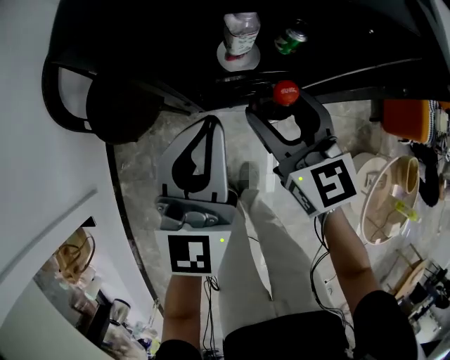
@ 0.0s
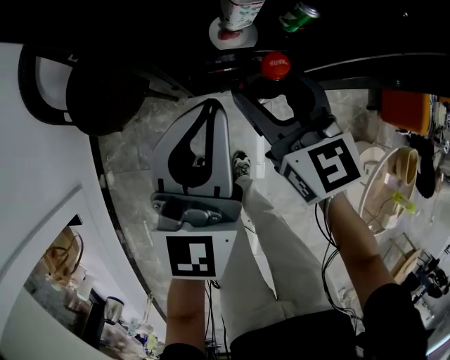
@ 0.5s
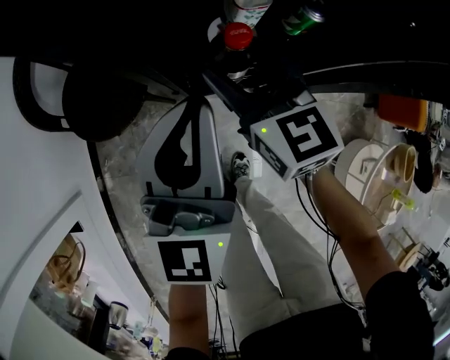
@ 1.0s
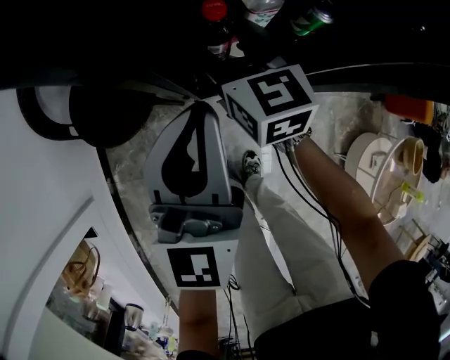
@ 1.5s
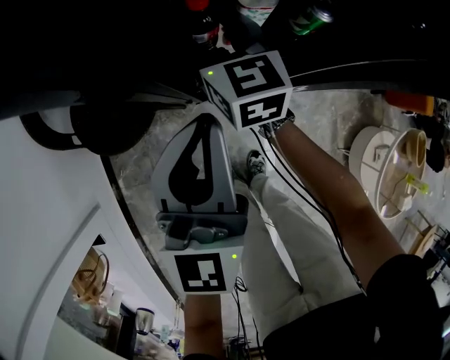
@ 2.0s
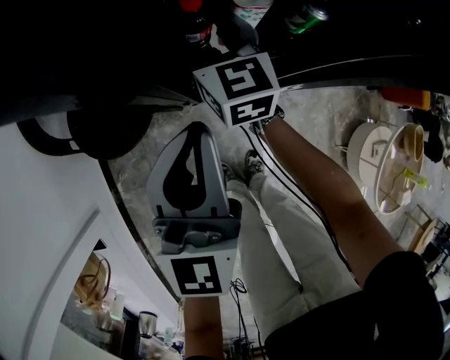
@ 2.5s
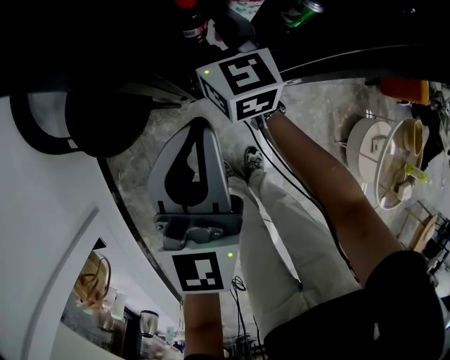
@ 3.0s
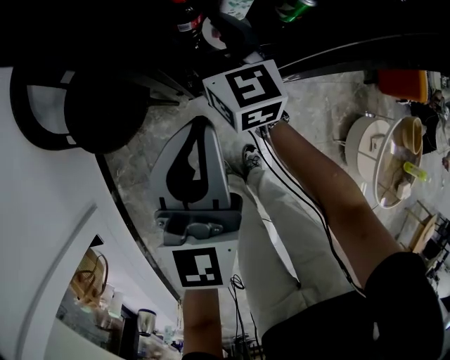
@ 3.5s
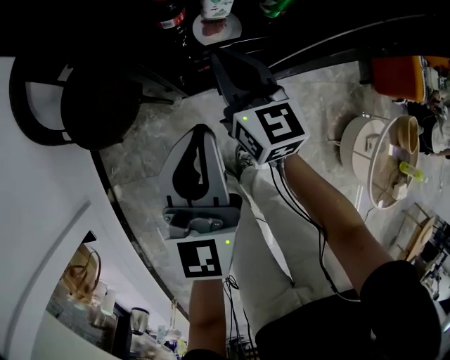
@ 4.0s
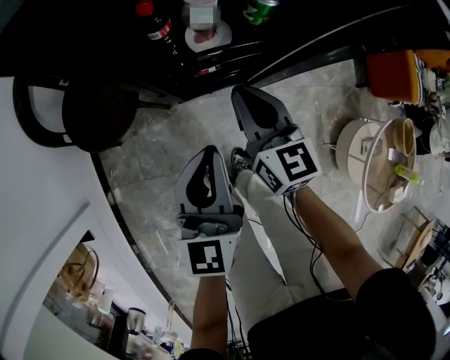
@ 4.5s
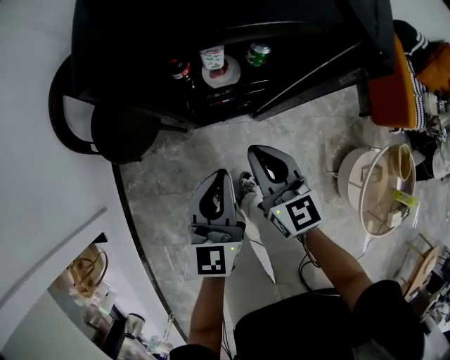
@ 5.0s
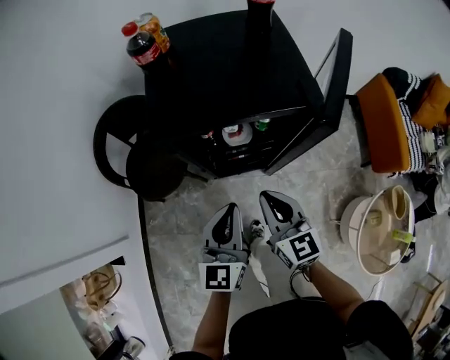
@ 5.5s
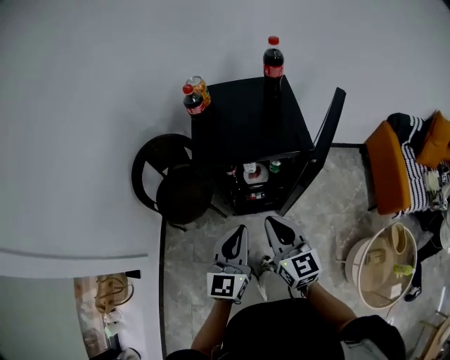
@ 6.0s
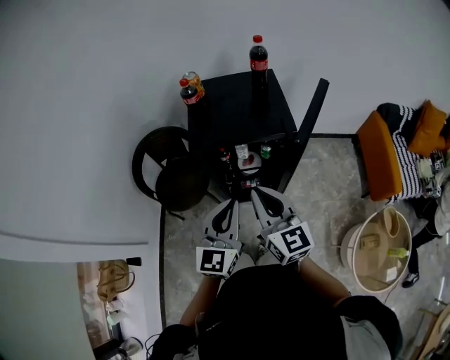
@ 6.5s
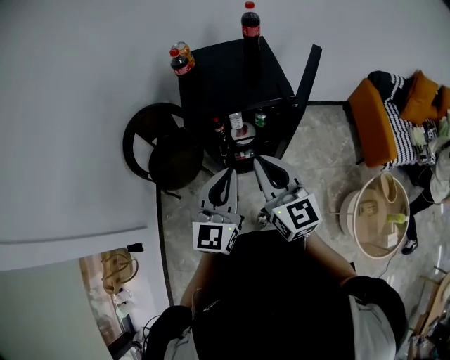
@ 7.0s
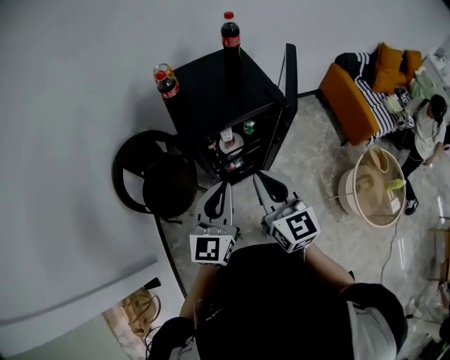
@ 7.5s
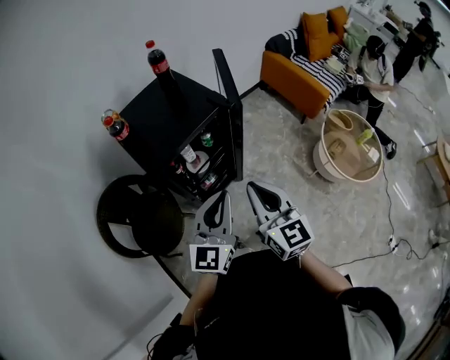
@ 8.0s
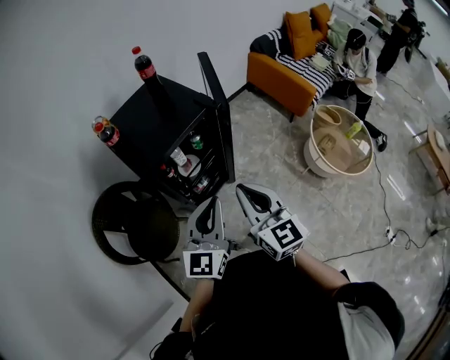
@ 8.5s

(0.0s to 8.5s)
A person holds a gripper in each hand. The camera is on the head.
0.0s - 2.0s: The right gripper shifts some 20 cm forward, to the left and downward; the left gripper shifts by roughly 5 cm.
2.0s - 4.0s: The left gripper is displaced backward by about 5 cm. Meanwhile the right gripper moves backward and to the right, some 15 cm, and closes up.
4.0s - 6.5s: The left gripper heads upward, covering approximately 30 cm, while the right gripper shifts approximately 40 cm upward and backward.
6.5s - 8.5s: The right gripper changes place by roughly 10 cm, and turns by about 40 degrees, while the left gripper moves roughly 5 cm, and swivels about 40 degrees.

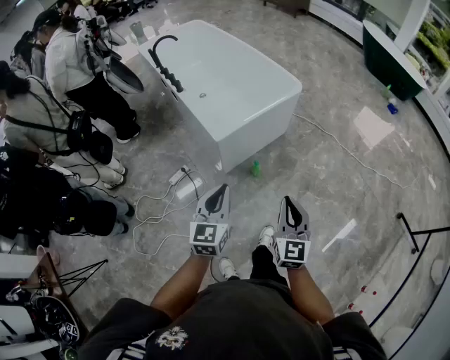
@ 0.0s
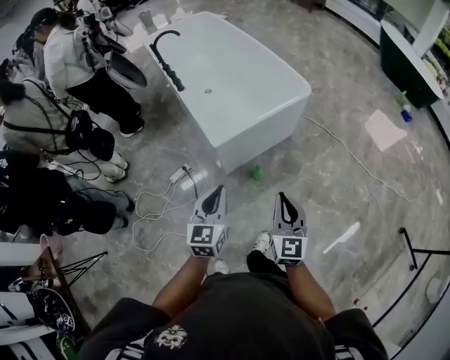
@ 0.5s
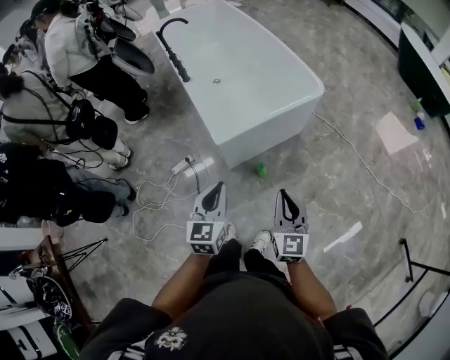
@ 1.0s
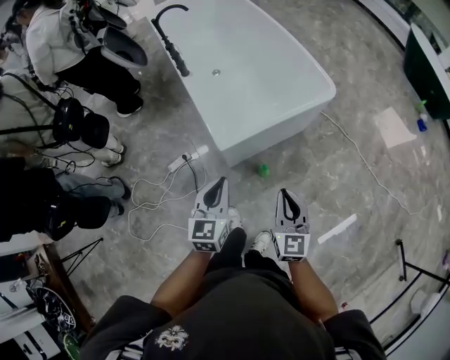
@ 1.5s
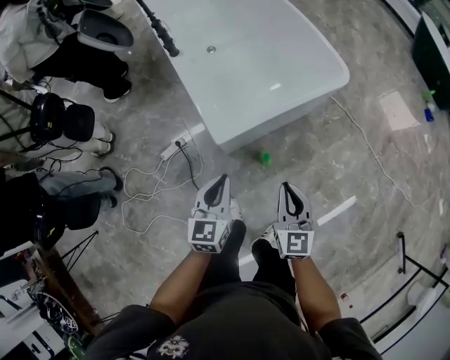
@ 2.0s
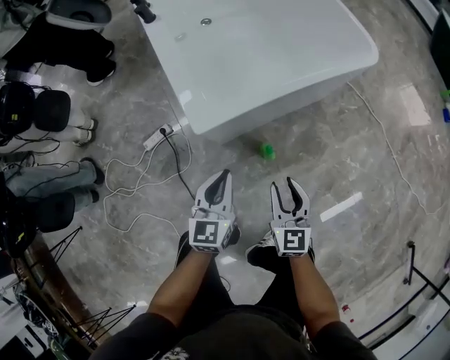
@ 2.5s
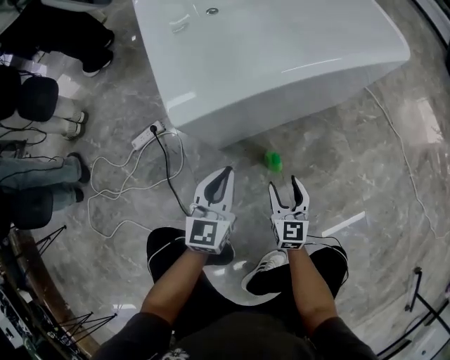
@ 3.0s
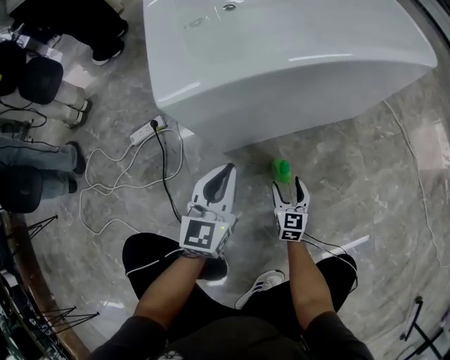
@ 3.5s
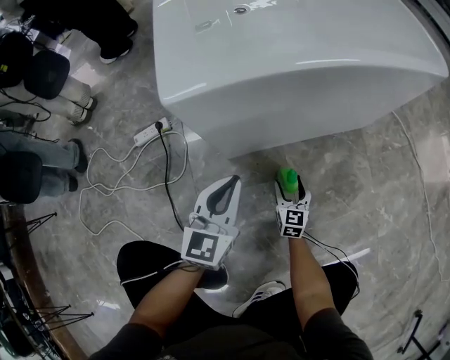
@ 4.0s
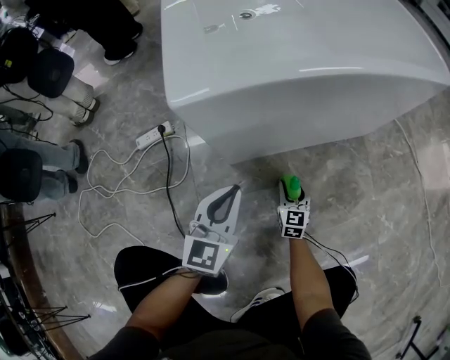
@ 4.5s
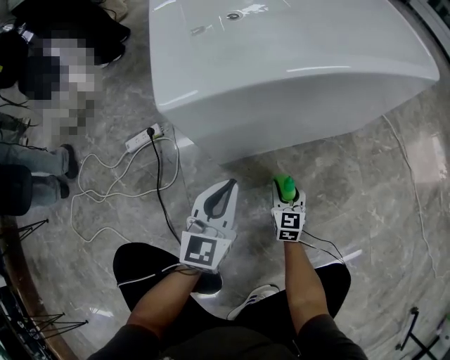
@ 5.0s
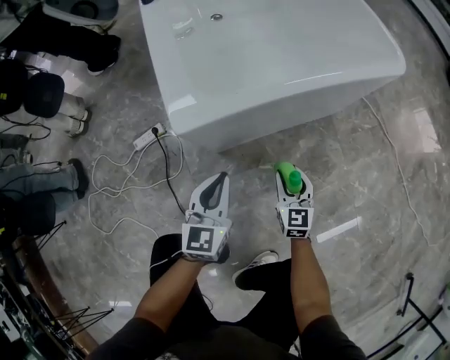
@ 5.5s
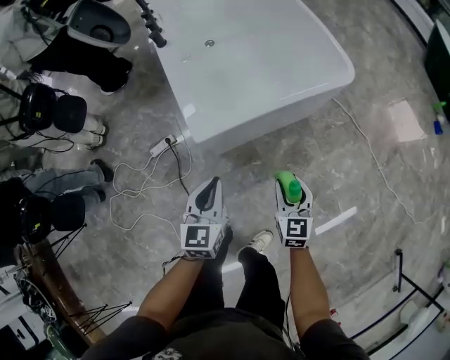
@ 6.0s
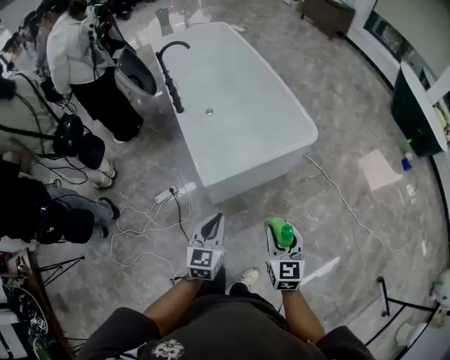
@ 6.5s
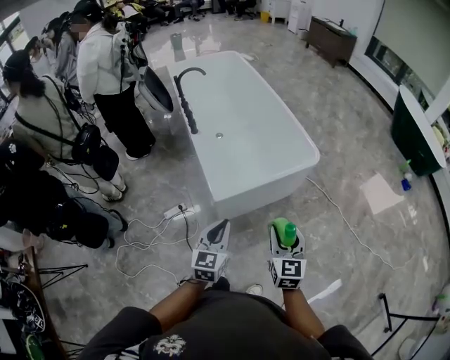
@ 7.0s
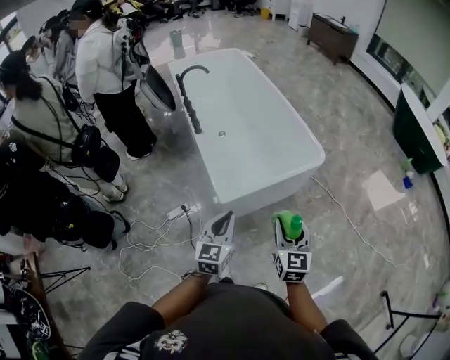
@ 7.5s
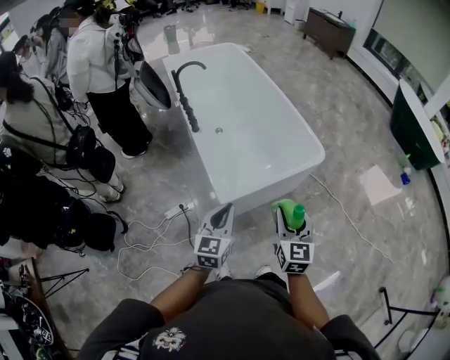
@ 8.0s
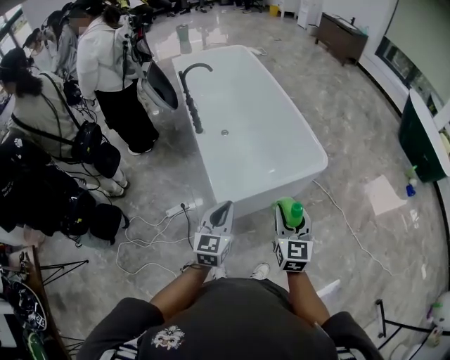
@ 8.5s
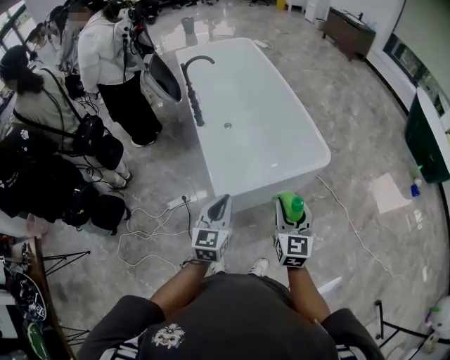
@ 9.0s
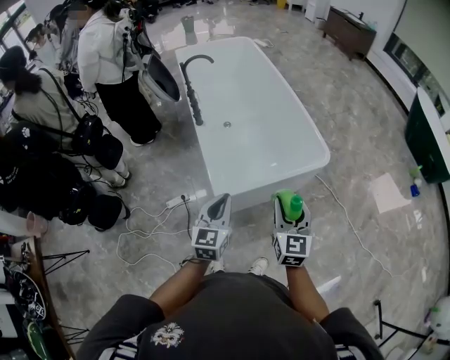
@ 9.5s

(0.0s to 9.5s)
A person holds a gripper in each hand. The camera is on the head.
0.0s - 2.0s: Both grippers travel together forward and downward, roughly 35 cm.
2.0s - 4.0s: The right gripper goes roughly 70 cm downward, and opens. Meanwhile the left gripper is displaced downward by approximately 50 cm.
4.0s - 5.5s: The right gripper heads upward, covering some 25 cm, and closes its fingers. Meanwhile the left gripper shifts roughly 15 cm upward.
5.5s - 7.5s: The two grippers go about 60 cm upward.
7.5s - 9.5s: Both grippers travel together forward, approximately 10 cm.

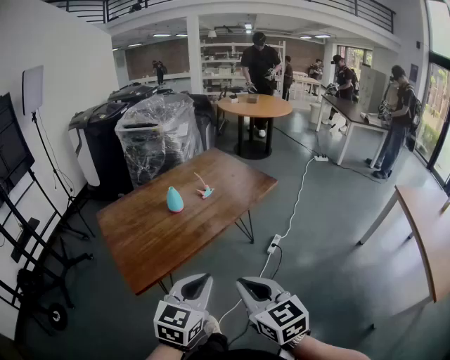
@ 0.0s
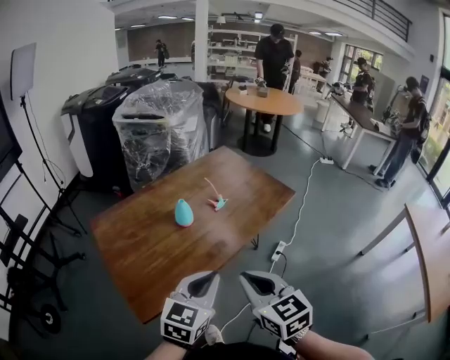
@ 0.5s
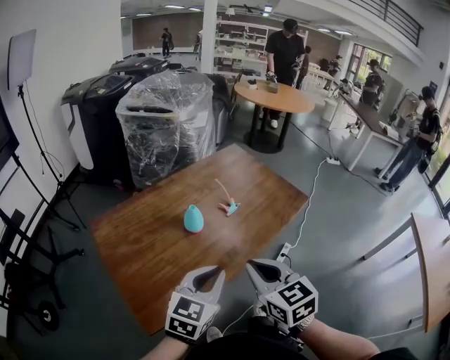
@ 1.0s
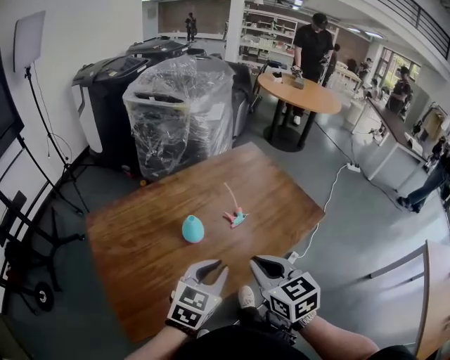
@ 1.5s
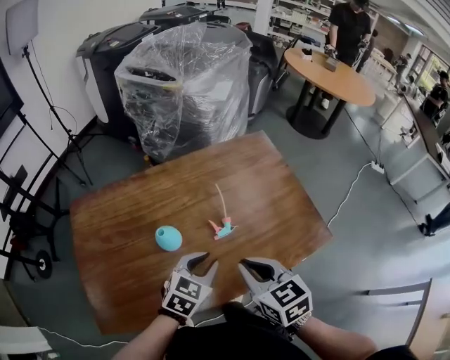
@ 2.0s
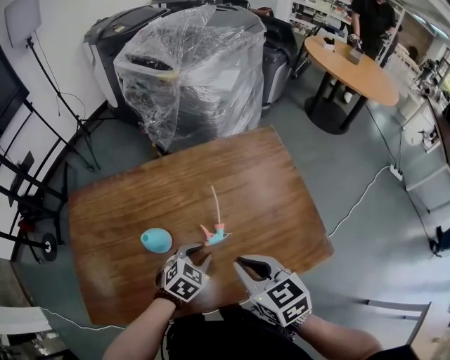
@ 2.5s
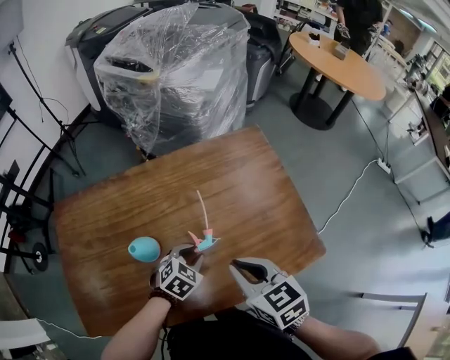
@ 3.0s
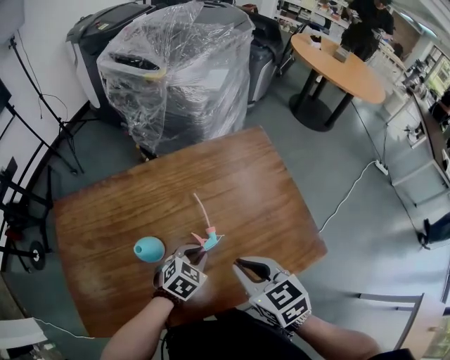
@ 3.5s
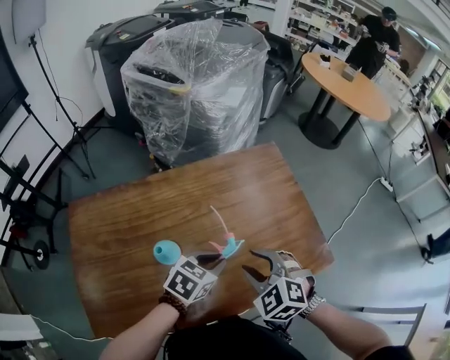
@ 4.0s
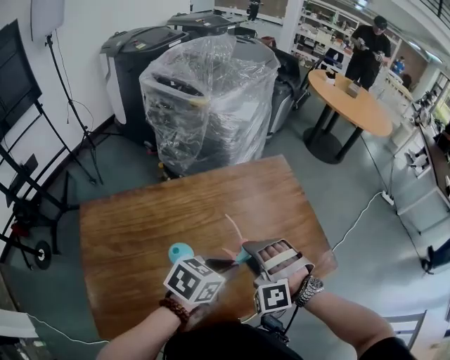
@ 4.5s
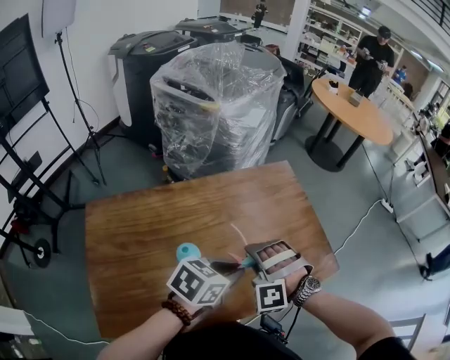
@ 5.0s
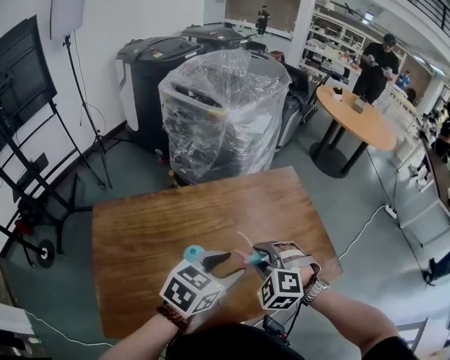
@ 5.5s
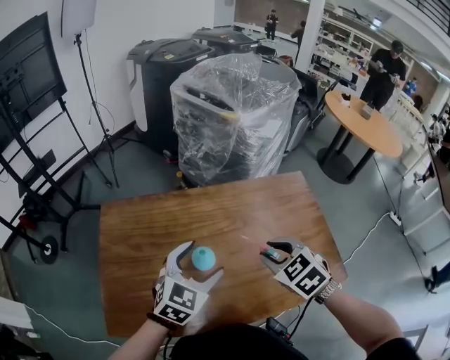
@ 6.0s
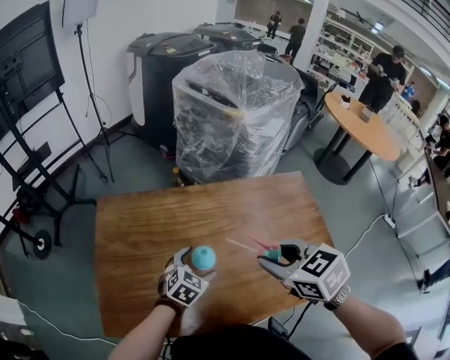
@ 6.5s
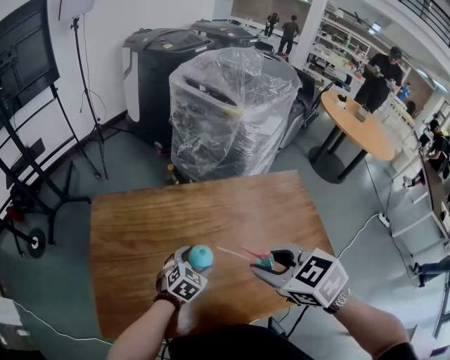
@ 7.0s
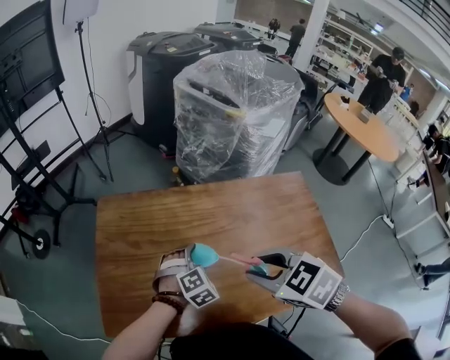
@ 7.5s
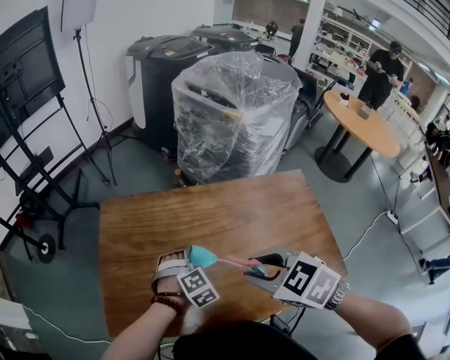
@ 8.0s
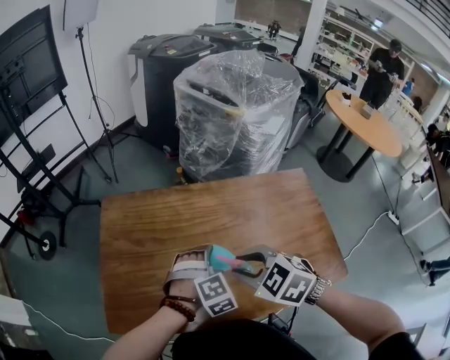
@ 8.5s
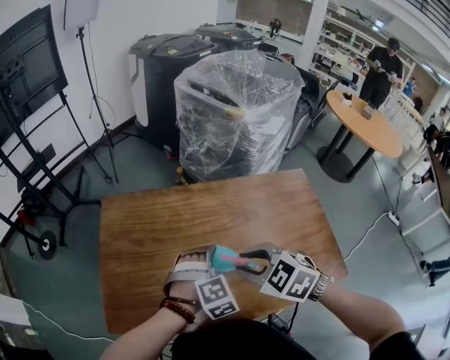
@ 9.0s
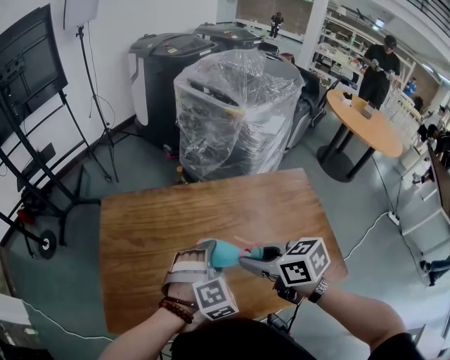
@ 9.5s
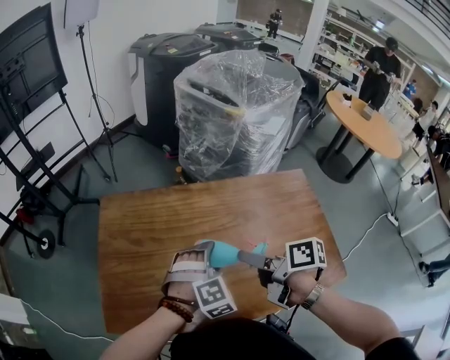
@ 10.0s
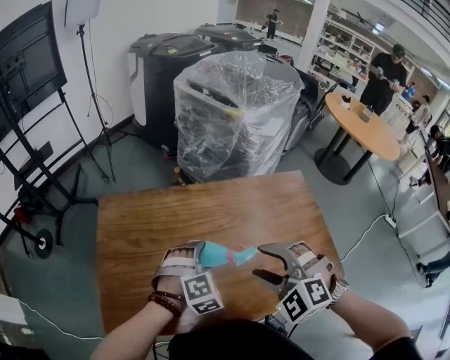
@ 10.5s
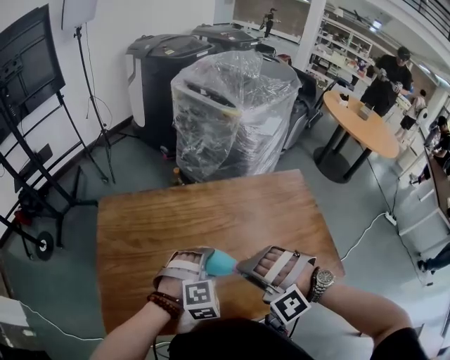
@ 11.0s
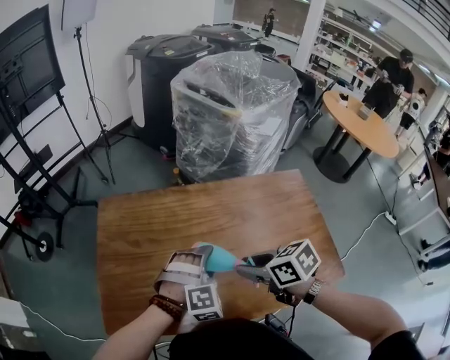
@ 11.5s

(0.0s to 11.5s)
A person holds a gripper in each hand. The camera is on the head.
0.0s - 2.0s: The pair of grippers is taken forward, roughly 50 cm. The left gripper swivels some 20 degrees. The right gripper turns by about 30 degrees.
2.0s - 4.0s: Both grippers travel together forward, about 5 cm. The left gripper goes downward and returns, some 10 cm each way. Meanwhile the right gripper twists some 40 degrees counterclockwise, seen from behind, and opens its fingers.
4.0s - 6.0s: The right gripper shifts by approximately 10 cm. The left gripper ends up some 20 cm from where it was, changes its angle by about 30 degrees, and opens up.
6.0s - 7.5s: The right gripper heads to the left and upward, covering roughly 10 cm. The left gripper travels downward by about 15 cm, and turns by roughly 40 degrees.
7.5s - 9.5s: The left gripper goes approximately 10 cm upward. Meanwhile the right gripper swivels some 40 degrees.
9.5s - 11.5s: The right gripper opens and closes again.
